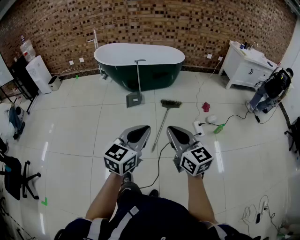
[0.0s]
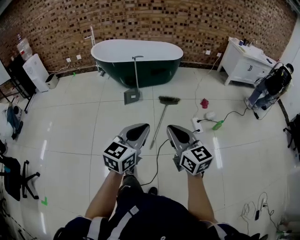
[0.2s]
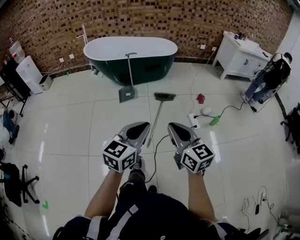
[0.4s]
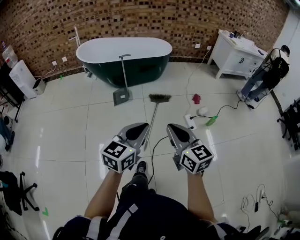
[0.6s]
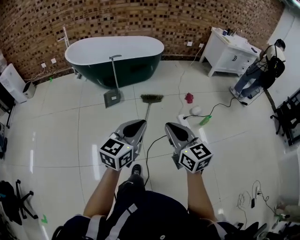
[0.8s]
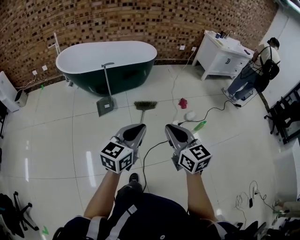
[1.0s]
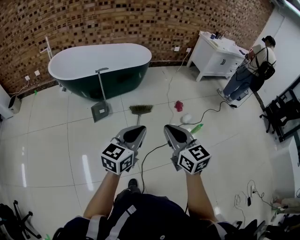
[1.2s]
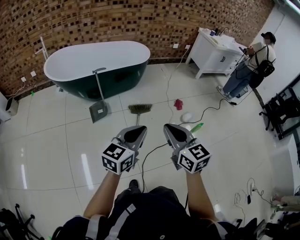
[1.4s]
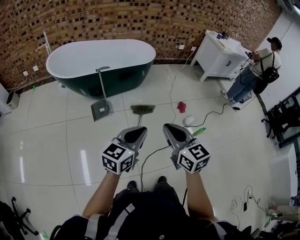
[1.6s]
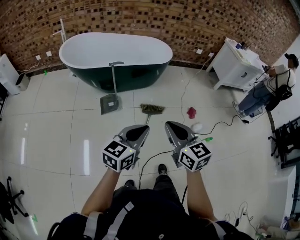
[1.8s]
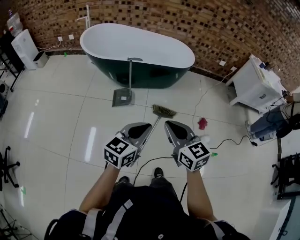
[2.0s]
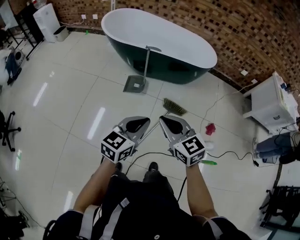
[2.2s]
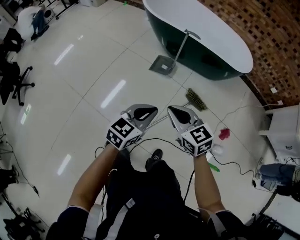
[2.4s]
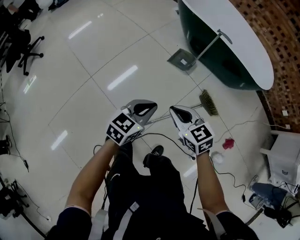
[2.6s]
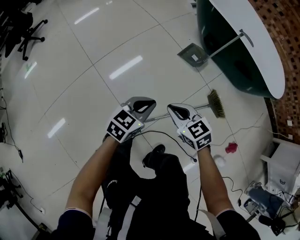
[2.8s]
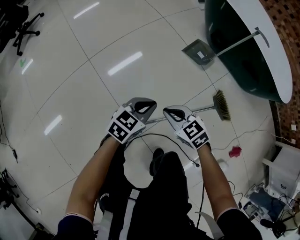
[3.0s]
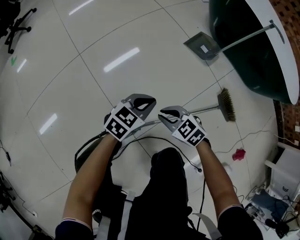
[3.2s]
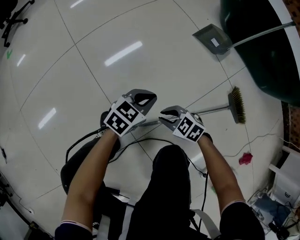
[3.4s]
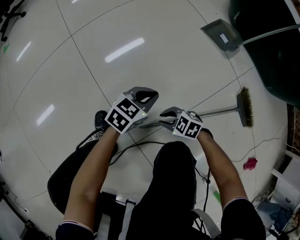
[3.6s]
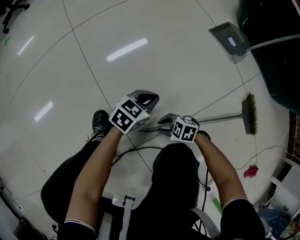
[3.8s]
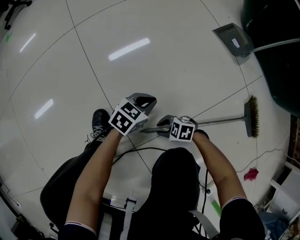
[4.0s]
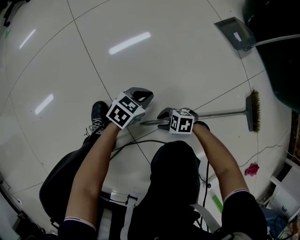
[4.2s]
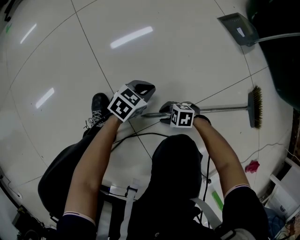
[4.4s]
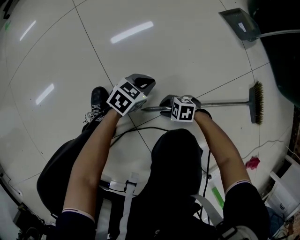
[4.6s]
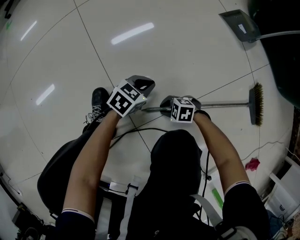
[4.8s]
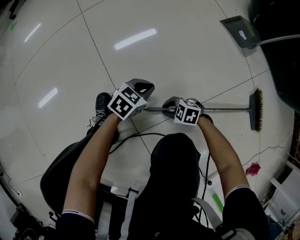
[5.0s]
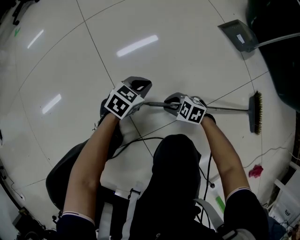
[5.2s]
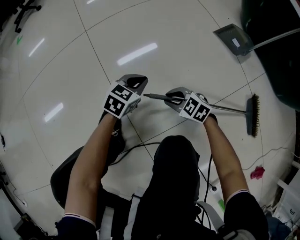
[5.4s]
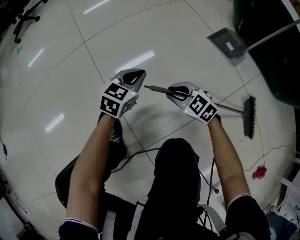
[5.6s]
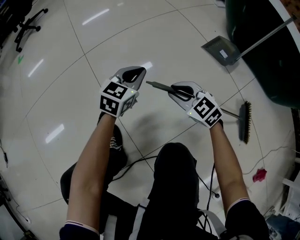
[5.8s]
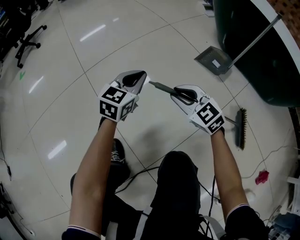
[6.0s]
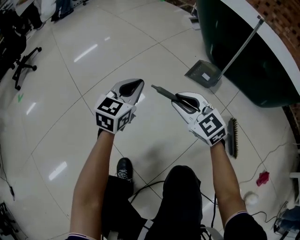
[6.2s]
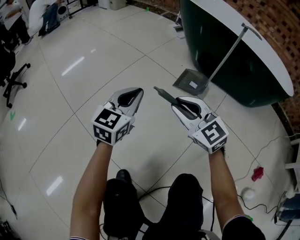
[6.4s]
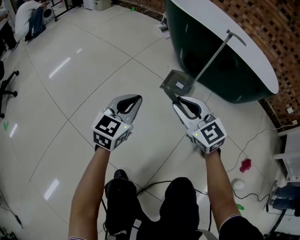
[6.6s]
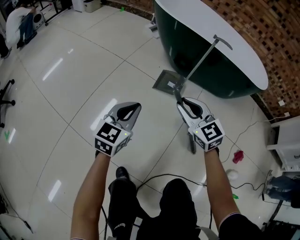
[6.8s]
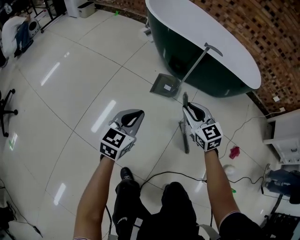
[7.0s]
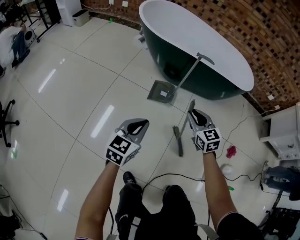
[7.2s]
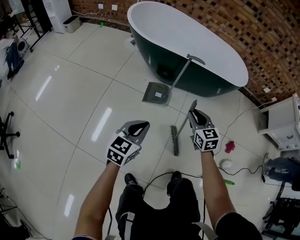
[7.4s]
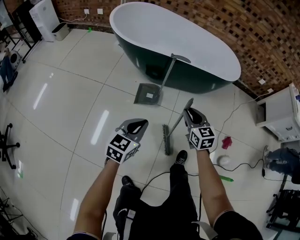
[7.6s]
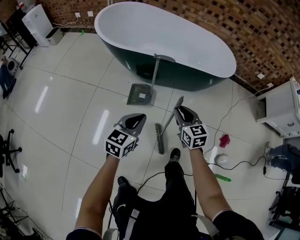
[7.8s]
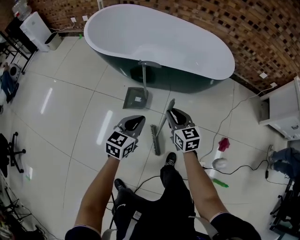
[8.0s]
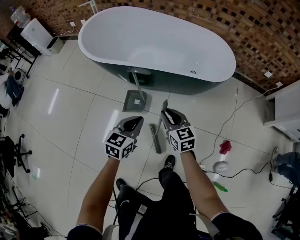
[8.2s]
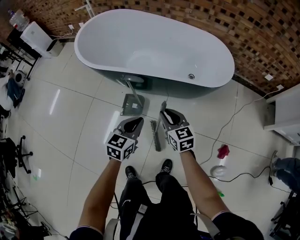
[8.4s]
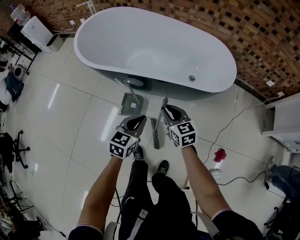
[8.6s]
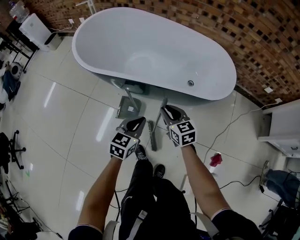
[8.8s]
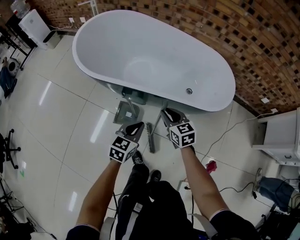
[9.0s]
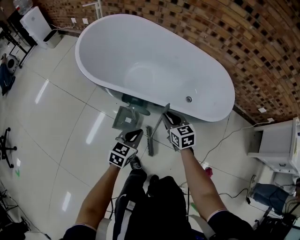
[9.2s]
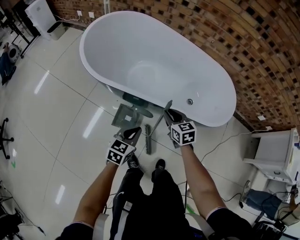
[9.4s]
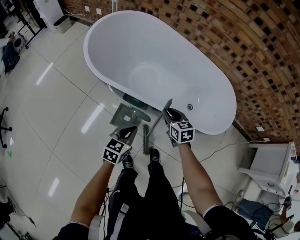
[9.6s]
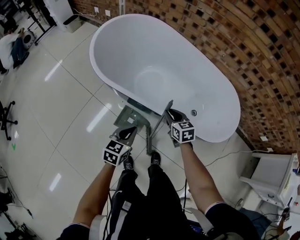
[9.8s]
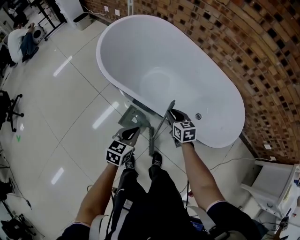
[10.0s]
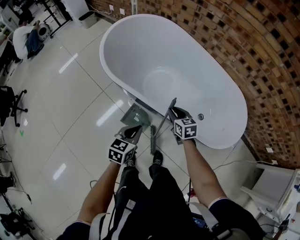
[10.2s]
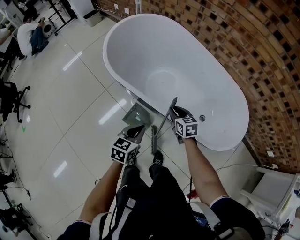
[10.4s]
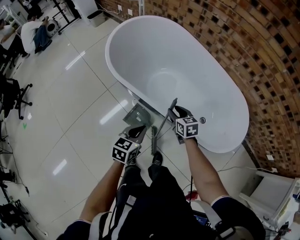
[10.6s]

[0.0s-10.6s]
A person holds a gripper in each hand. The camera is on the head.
0.0s to 1.6s: Both grippers move forward, some 30 cm.
1.6s to 3.0s: Both grippers move downward, approximately 40 cm. The right gripper swivels some 90 degrees. The left gripper swivels about 60 degrees.
3.0s to 4.6s: The two grippers go some 50 cm downward. The right gripper changes its angle by some 60 degrees, and opens.
4.6s to 6.0s: The grippers both shift upward by about 30 cm. The right gripper rotates approximately 60 degrees, while the left gripper rotates roughly 30 degrees.
6.0s to 7.6s: The grippers both shift upward by some 35 cm. The left gripper swivels some 40 degrees, while the right gripper rotates approximately 70 degrees.
7.6s to 9.0s: The two grippers go approximately 30 cm forward and to the right.
9.0s to 10.6s: The right gripper moves forward, some 15 cm, while the left gripper travels forward by about 10 cm, and rotates roughly 30 degrees.

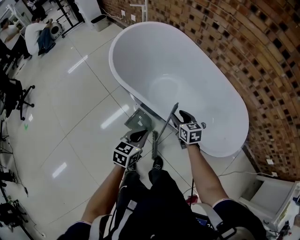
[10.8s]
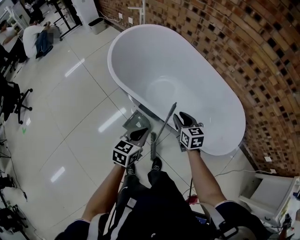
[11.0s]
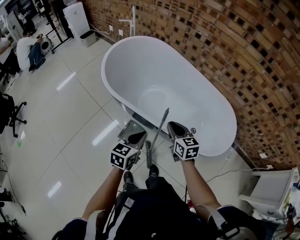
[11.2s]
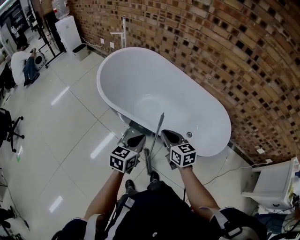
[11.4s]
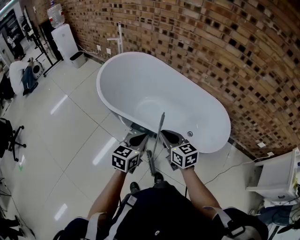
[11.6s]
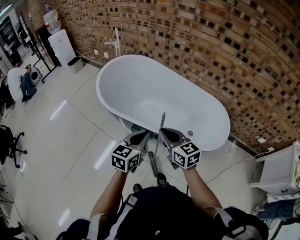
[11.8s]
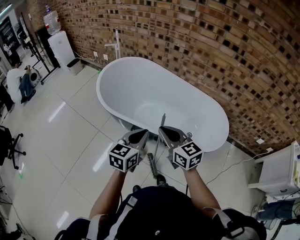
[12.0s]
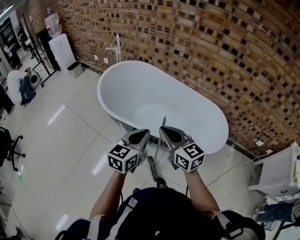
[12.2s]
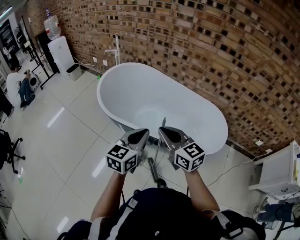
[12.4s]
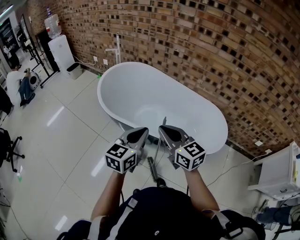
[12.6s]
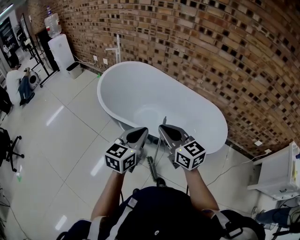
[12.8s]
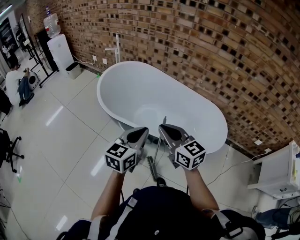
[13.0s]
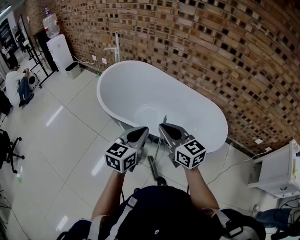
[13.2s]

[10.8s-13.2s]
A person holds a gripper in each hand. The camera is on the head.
10.8s to 12.0s: The left gripper is displaced upward by about 20 cm, and swivels about 20 degrees. The right gripper goes about 30 cm upward and backward, rotates approximately 20 degrees, and closes its fingers.
12.0s to 13.2s: The grippers make only small movements.

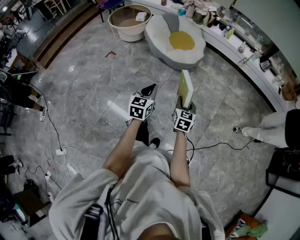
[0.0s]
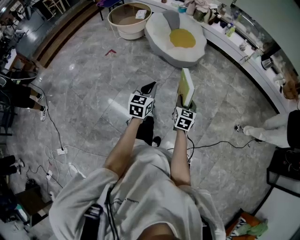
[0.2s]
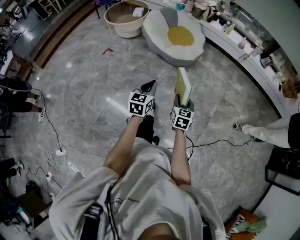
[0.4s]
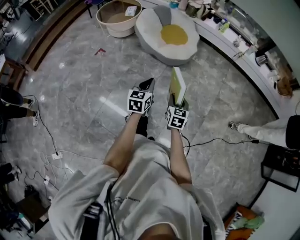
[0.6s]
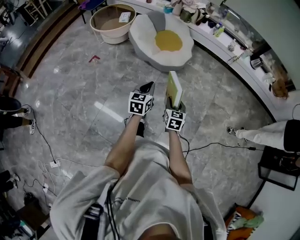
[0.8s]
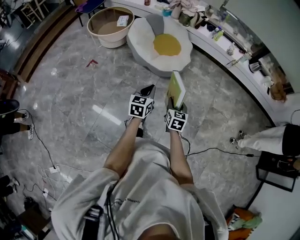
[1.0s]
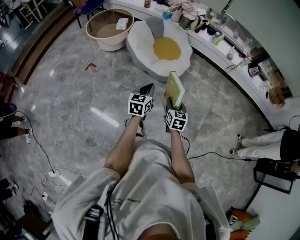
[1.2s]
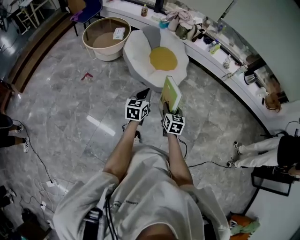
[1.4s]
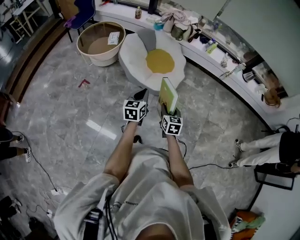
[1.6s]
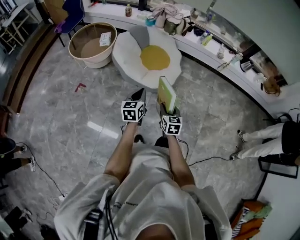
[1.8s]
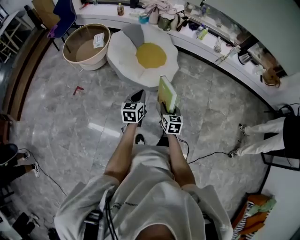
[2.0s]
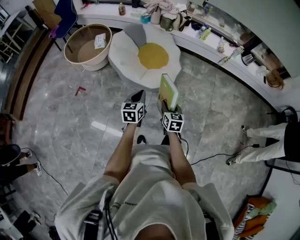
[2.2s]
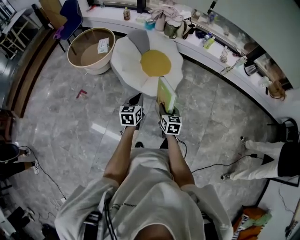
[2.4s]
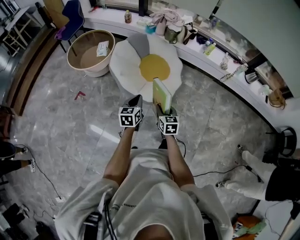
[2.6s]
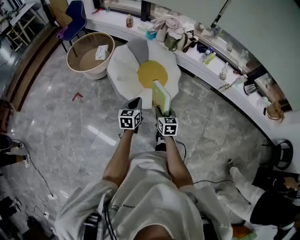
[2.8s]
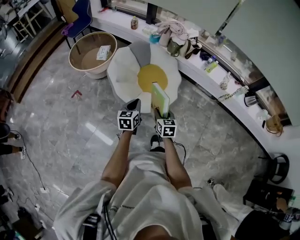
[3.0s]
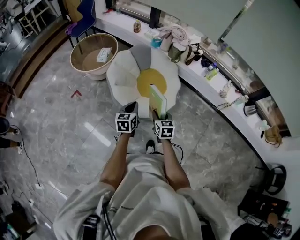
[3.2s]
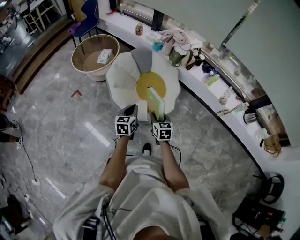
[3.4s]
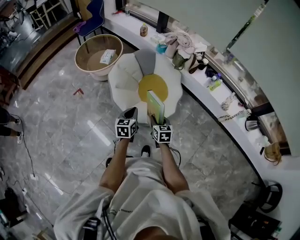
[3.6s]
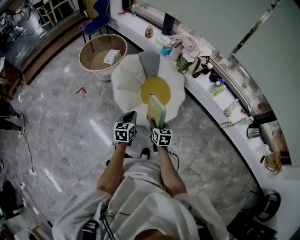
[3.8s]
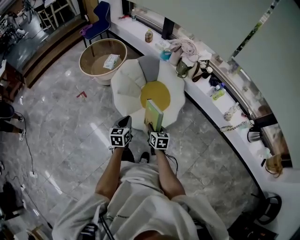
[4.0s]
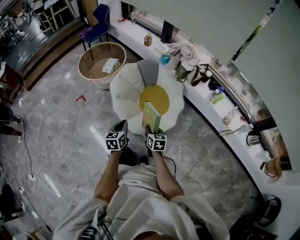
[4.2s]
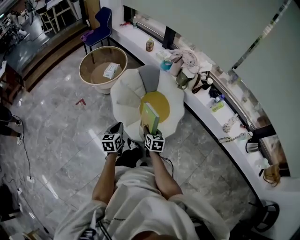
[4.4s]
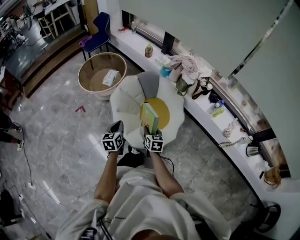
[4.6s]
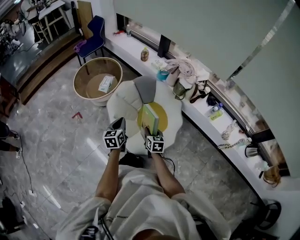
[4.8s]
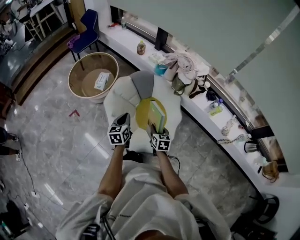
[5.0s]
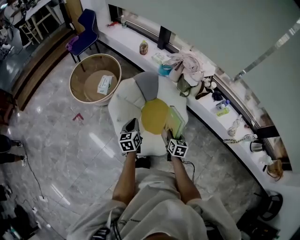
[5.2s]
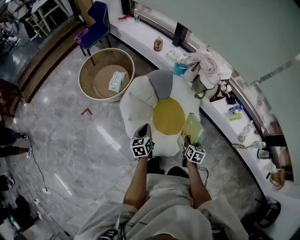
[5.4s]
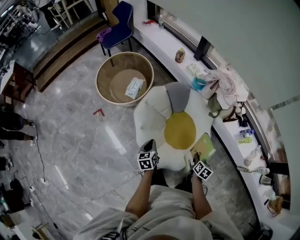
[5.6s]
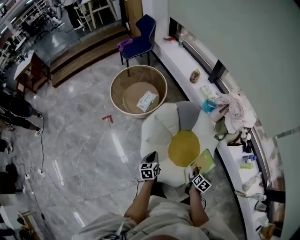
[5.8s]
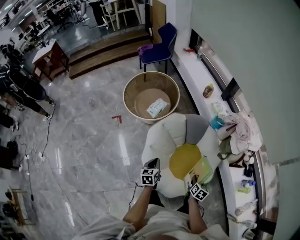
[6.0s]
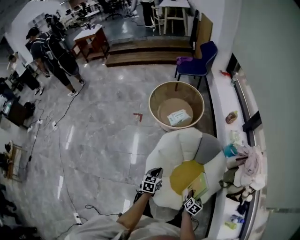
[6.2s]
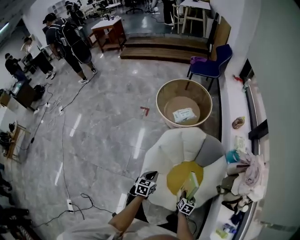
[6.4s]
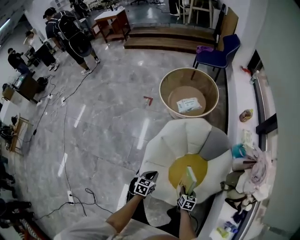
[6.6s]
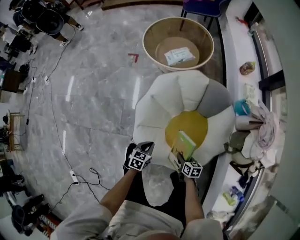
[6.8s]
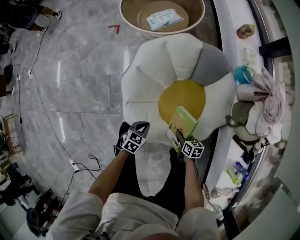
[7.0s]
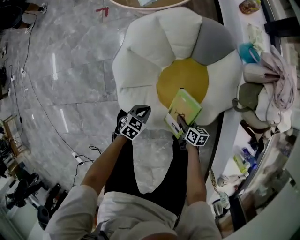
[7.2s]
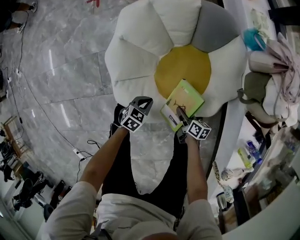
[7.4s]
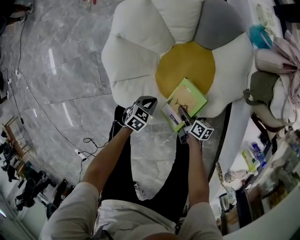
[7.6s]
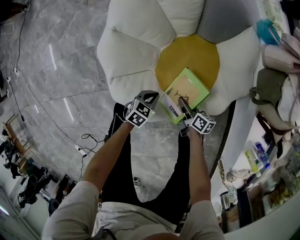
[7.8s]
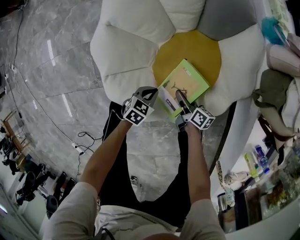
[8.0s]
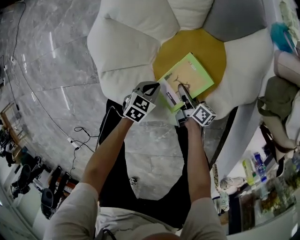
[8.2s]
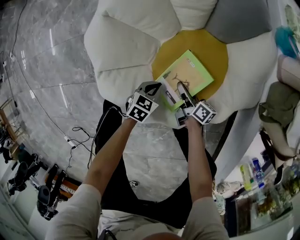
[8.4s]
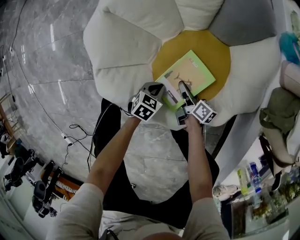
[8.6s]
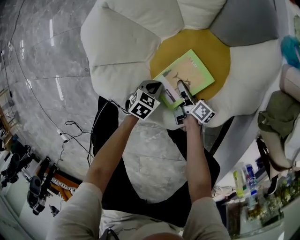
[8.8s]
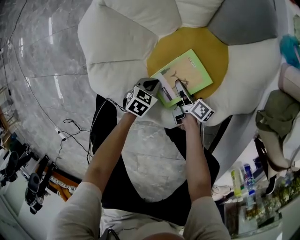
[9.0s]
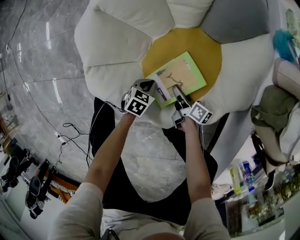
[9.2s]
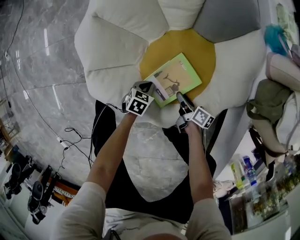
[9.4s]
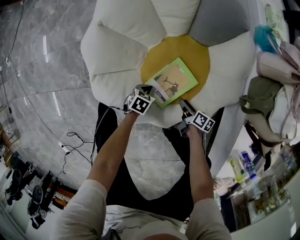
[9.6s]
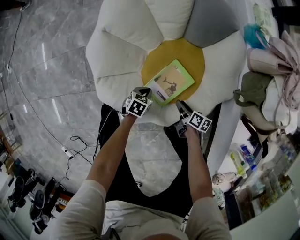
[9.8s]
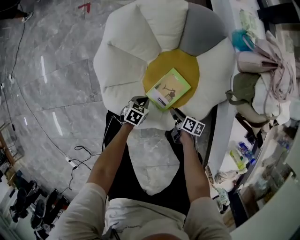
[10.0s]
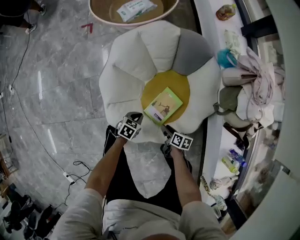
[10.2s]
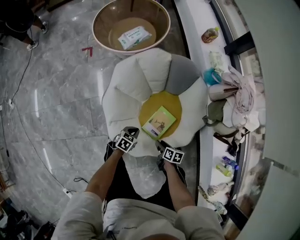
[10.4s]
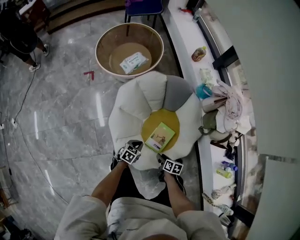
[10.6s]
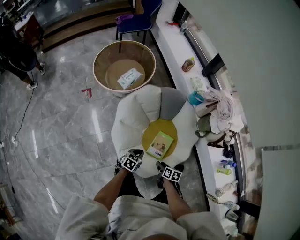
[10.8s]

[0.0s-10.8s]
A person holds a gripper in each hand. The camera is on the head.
0.0s to 1.6s: Both grippers travel together forward, about 35 cm.
1.6s to 3.0s: The grippers both shift forward and to the right by some 25 cm.
3.0s to 4.6s: Both grippers travel together forward, some 15 cm. The left gripper swivels about 20 degrees.
4.6s to 6.2s: The left gripper changes place by approximately 20 cm, and turns by some 30 degrees; the right gripper ends up some 30 cm from where it was.
6.2s to 7.8s: Both grippers travel together downward, approximately 35 cm. The right gripper rotates some 40 degrees. Meanwhile the left gripper swivels some 40 degrees.
7.8s to 9.2s: Both grippers move downward, roughly 10 cm.
9.2s to 10.8s: Both grippers travel together upward, roughly 35 cm. The right gripper changes its angle by about 30 degrees, while the left gripper rotates roughly 30 degrees.
